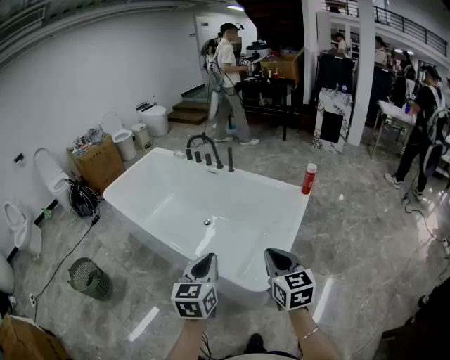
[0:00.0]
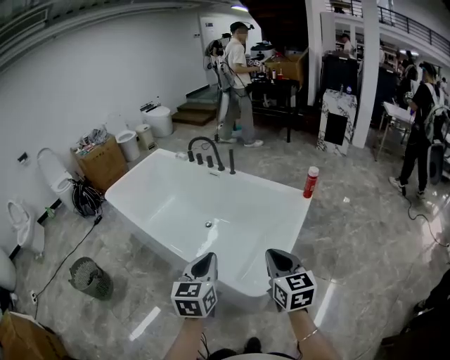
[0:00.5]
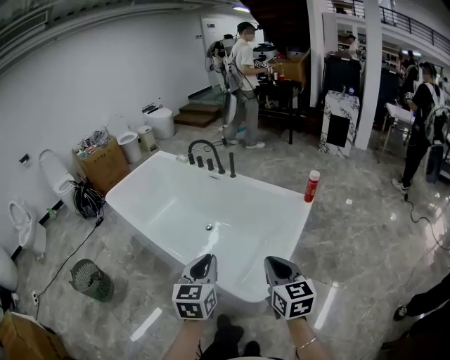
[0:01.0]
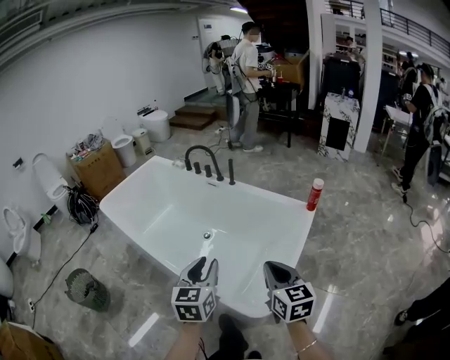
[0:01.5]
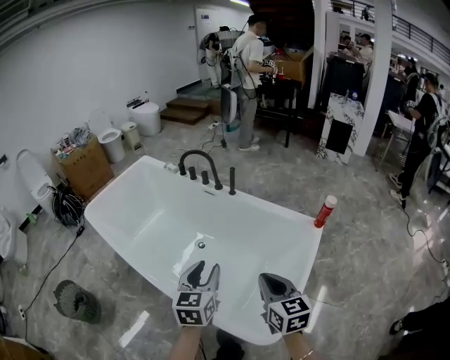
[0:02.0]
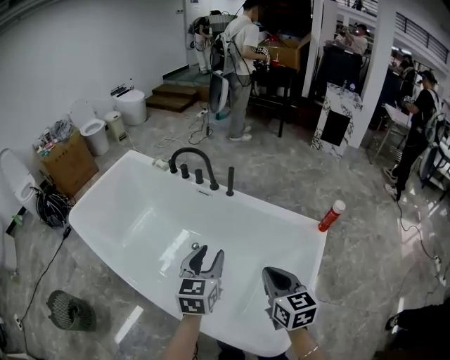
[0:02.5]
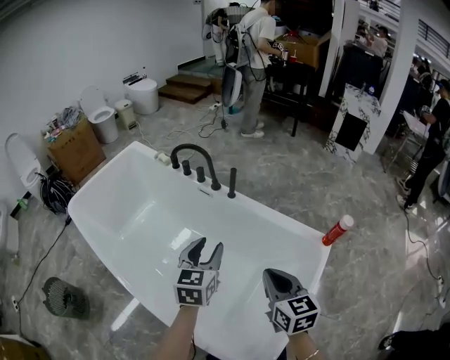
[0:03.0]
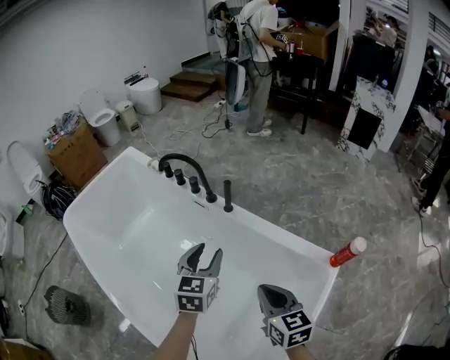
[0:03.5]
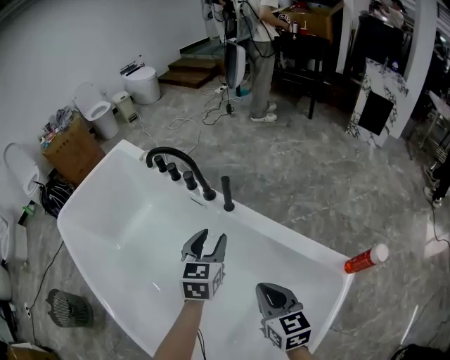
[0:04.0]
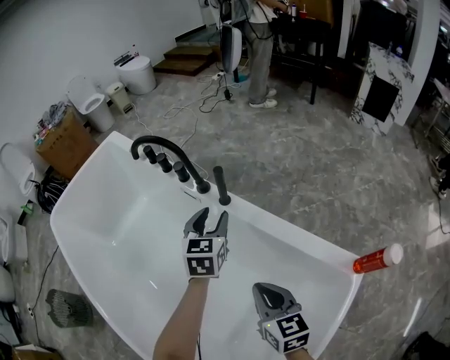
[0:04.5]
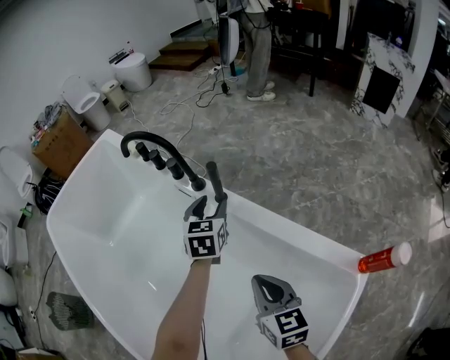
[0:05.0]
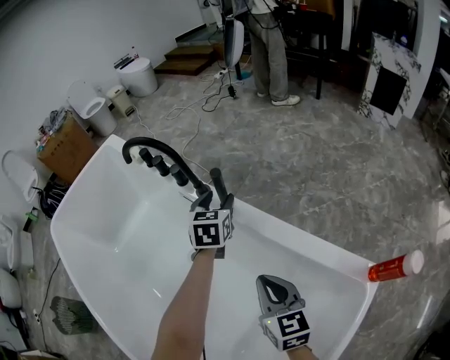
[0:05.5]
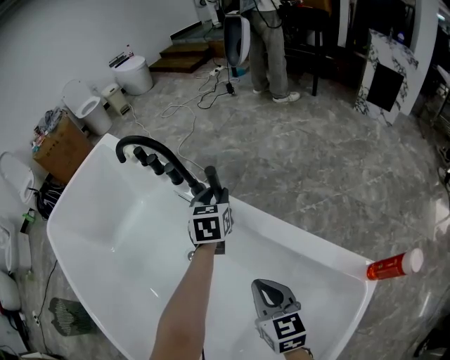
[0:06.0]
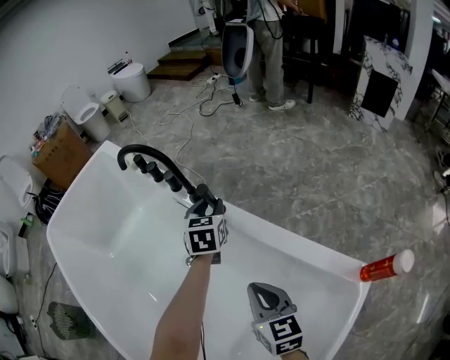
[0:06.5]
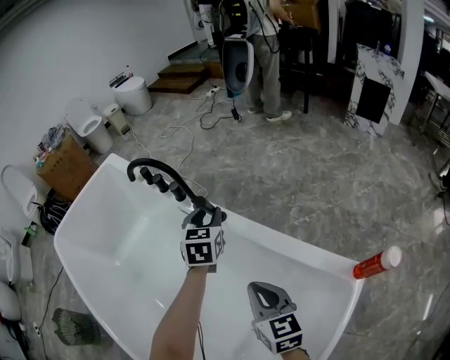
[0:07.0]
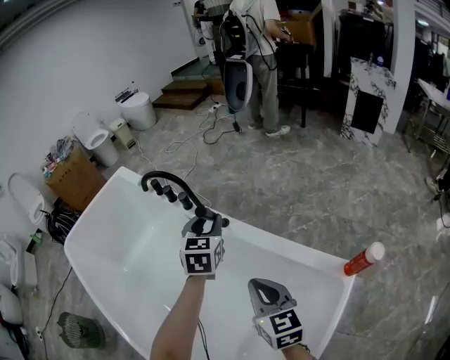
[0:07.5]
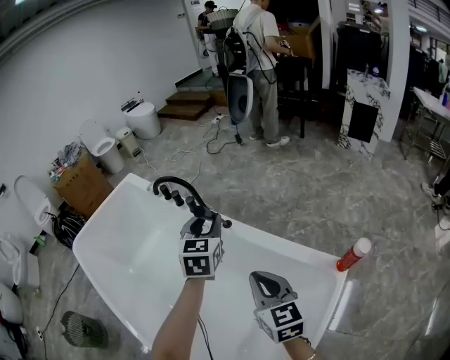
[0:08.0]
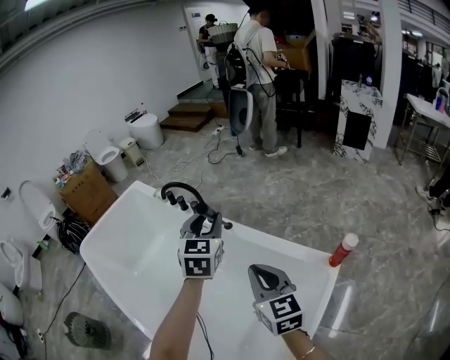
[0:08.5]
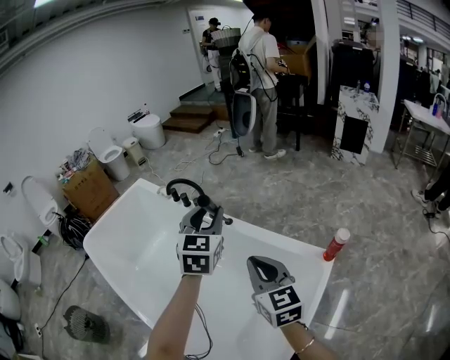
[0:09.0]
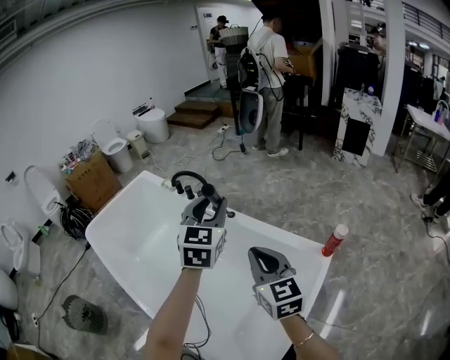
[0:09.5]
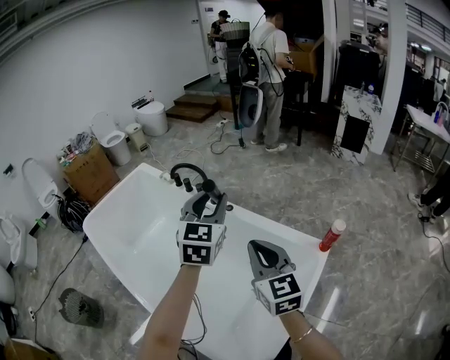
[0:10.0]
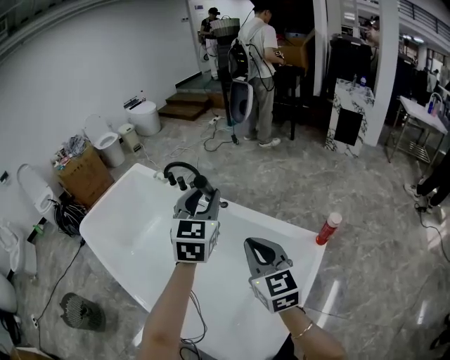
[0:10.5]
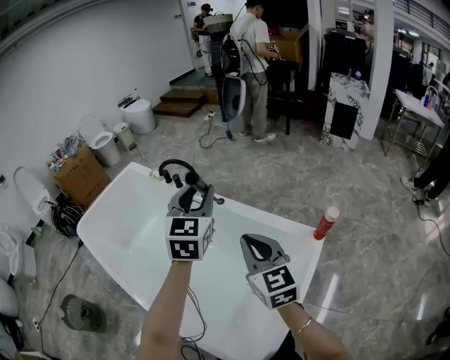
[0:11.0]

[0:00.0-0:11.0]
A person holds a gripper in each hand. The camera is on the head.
0:00.0 to 0:02.0: The two grippers go approximately 35 cm forward. The left gripper opens.
0:02.0 to 0:03.5: The two grippers travel together, forward, roughly 40 cm.
0:03.5 to 0:05.5: The left gripper travels forward and downward by some 40 cm. Meanwhile the right gripper shifts roughly 35 cm downward and forward.
0:05.5 to 0:07.5: The two grippers go roughly 25 cm upward and backward. The left gripper closes its fingers.
0:07.5 to 0:09.0: The left gripper heads backward and upward, covering approximately 40 cm; the right gripper travels upward and backward by about 30 cm.
0:09.0 to 0:11.0: The left gripper heads backward, covering approximately 5 cm.

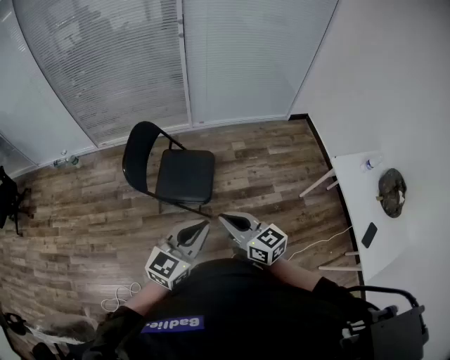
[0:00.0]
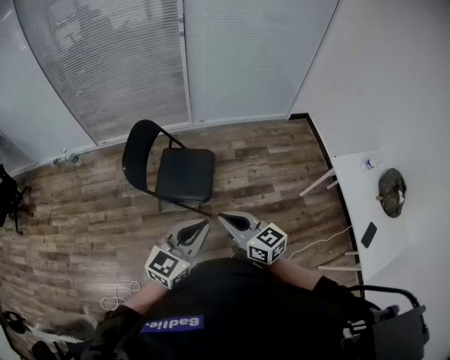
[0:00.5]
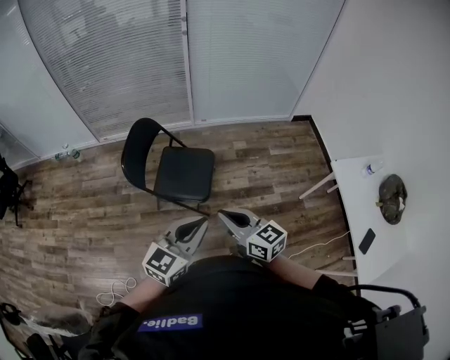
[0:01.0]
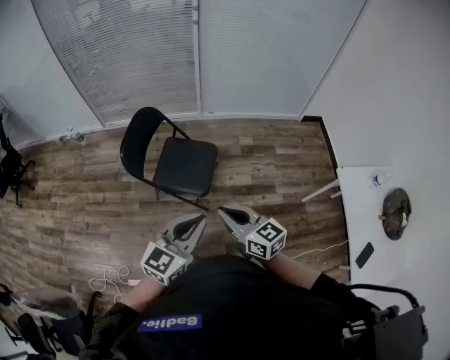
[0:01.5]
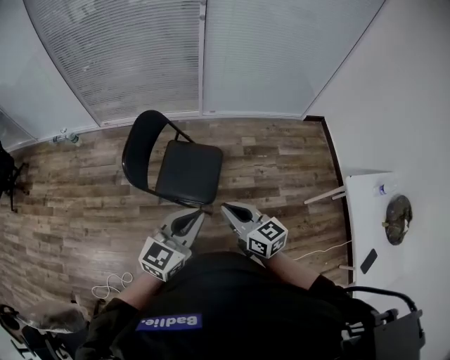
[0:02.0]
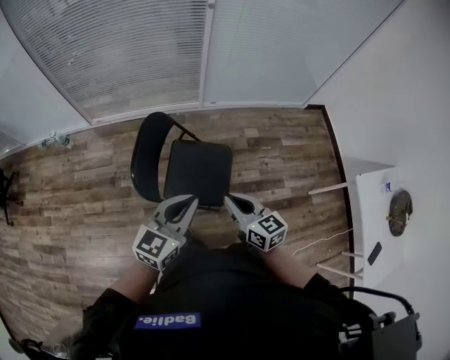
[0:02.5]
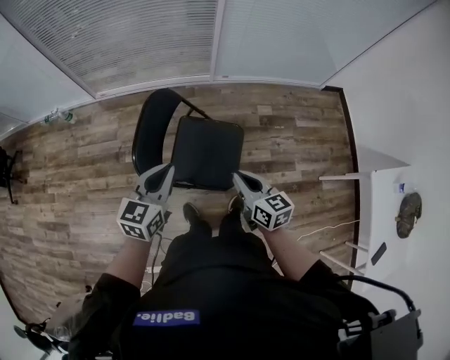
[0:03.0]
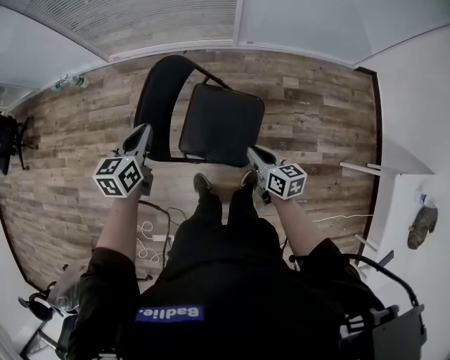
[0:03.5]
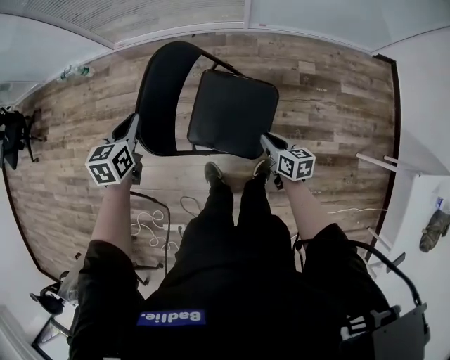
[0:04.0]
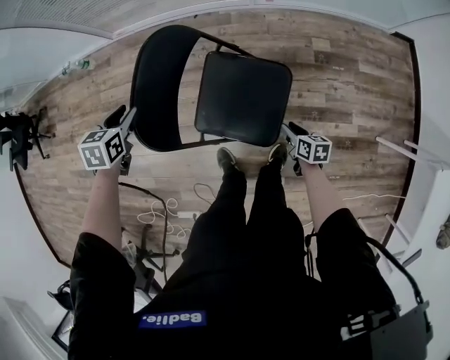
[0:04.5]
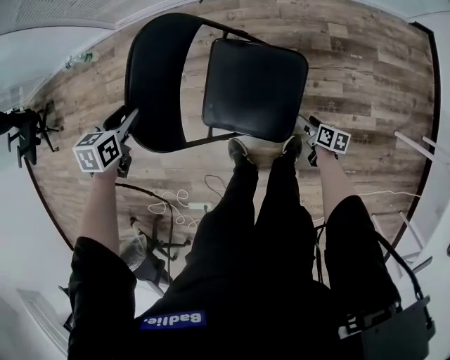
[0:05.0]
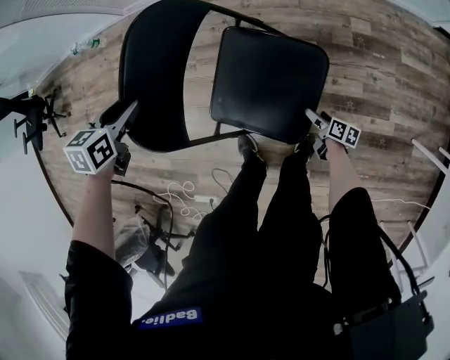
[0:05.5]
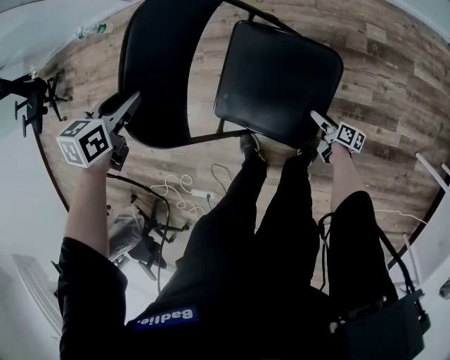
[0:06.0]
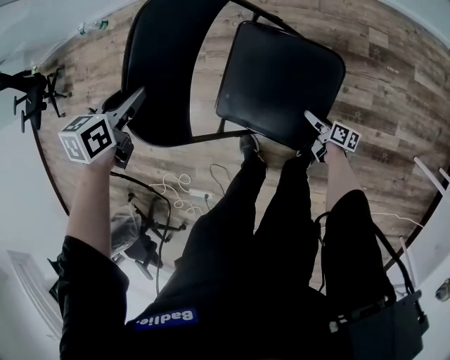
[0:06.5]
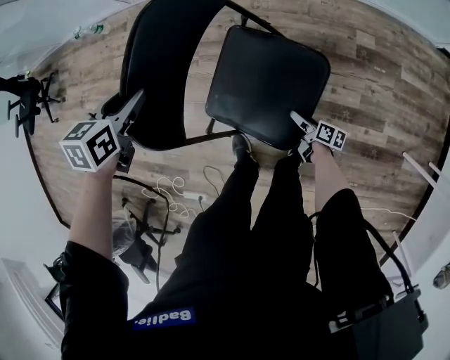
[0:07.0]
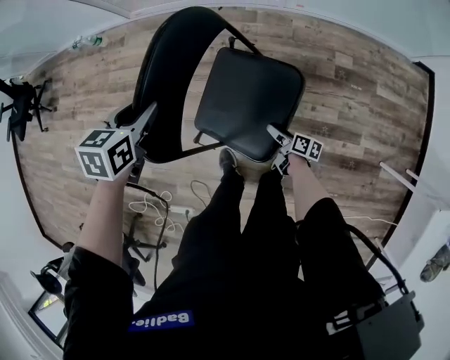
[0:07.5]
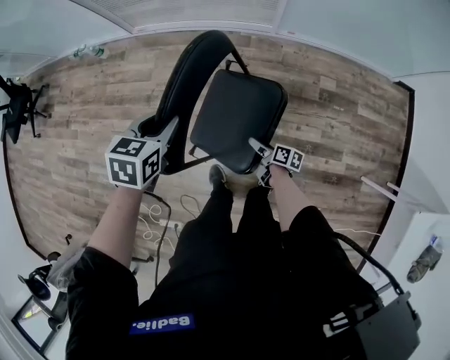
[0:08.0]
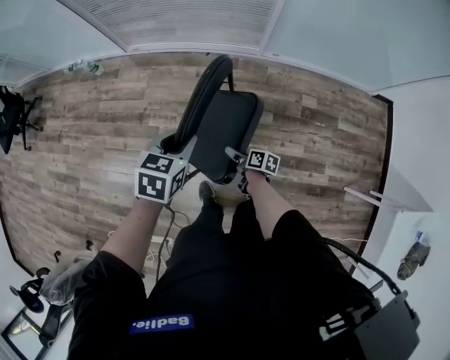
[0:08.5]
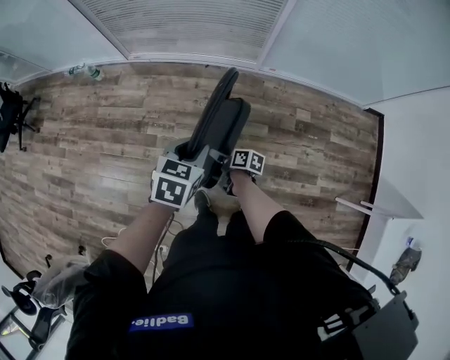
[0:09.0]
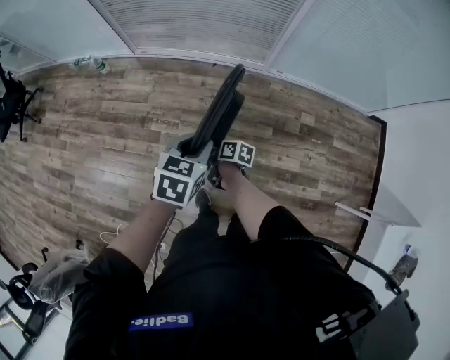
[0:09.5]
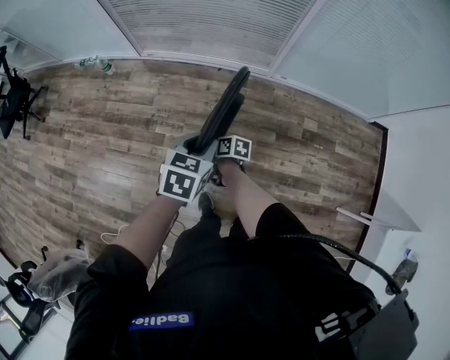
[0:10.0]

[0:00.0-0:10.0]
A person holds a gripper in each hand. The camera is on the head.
0:00.0 to 0:02.0: Both grippers move forward, approximately 15 cm.
0:02.0 to 0:04.0: The right gripper is displaced downward and forward by some 40 cm, and rotates approximately 30 degrees, while the left gripper moves forward, to the left and downward, some 50 cm, and points its fingers some 30 degrees further downward.
0:04.0 to 0:06.0: The right gripper heads downward, covering roughly 35 cm, turns by some 40 degrees, and opens. Meanwhile the left gripper travels downward by about 15 cm, and opens its fingers.
0:06.0 to 0:08.0: The right gripper heads upward and to the left, covering roughly 25 cm. Meanwhile the left gripper travels upward by about 15 cm.
0:08.0 to 0:10.0: The right gripper shifts about 30 cm to the left, upward and forward; the left gripper moves upward, about 5 cm.

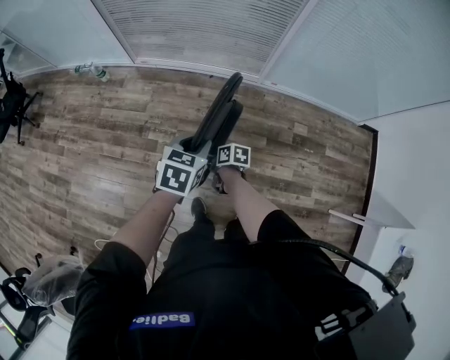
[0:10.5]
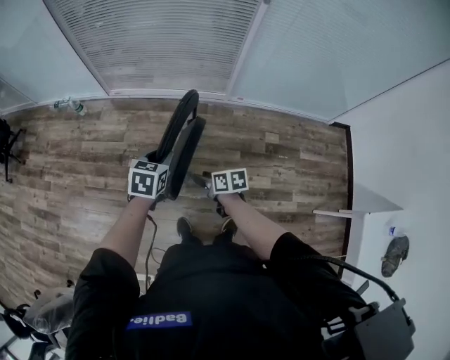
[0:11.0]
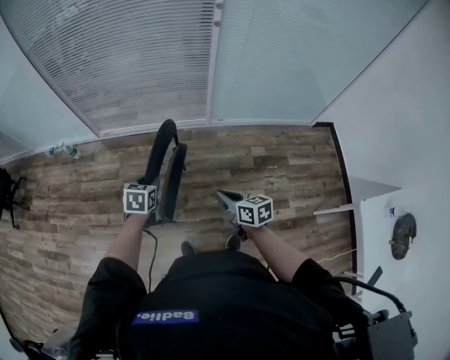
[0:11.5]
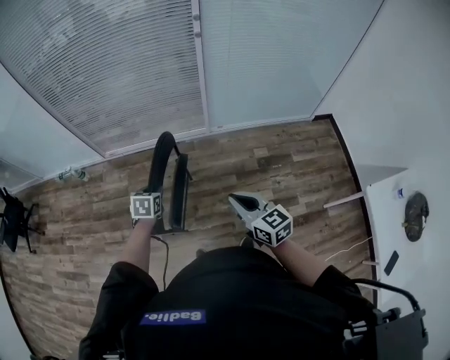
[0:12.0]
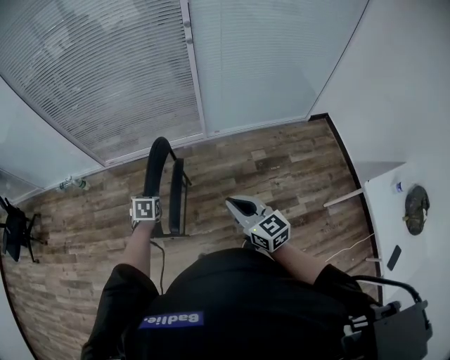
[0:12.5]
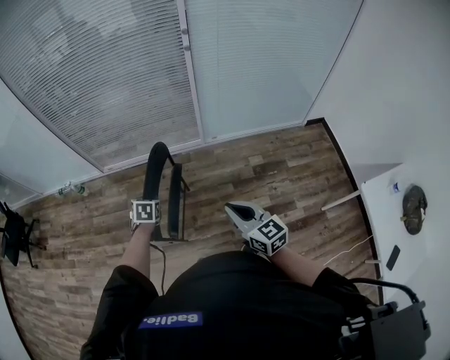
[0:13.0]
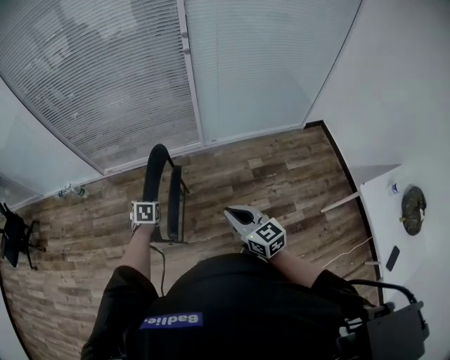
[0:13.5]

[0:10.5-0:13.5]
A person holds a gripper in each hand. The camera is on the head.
0:10.5 to 0:12.0: The right gripper is displaced upward, to the right and backward by some 40 cm, rotates about 60 degrees, and closes up.
0:12.0 to 0:13.5: The grippers move only a little.

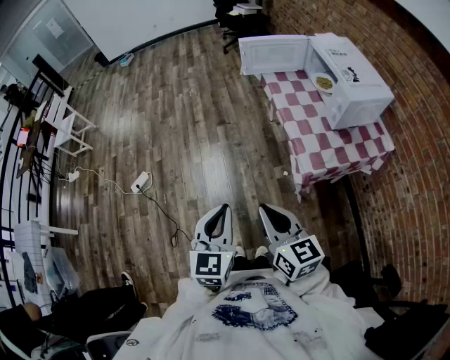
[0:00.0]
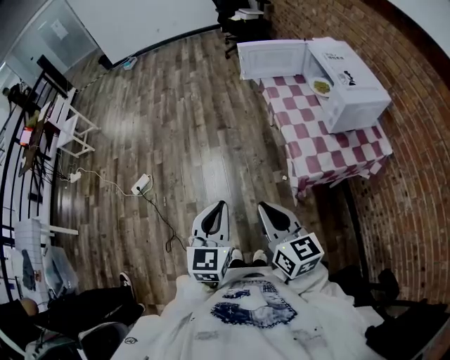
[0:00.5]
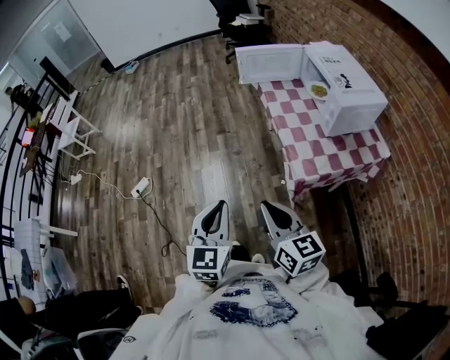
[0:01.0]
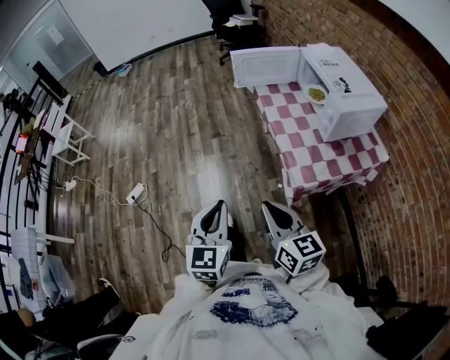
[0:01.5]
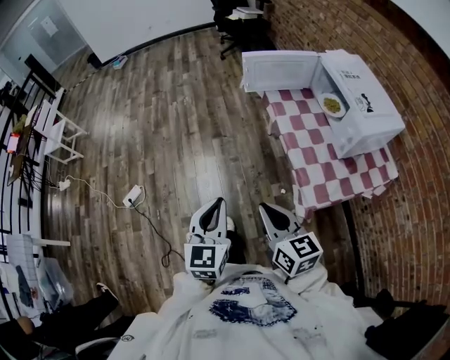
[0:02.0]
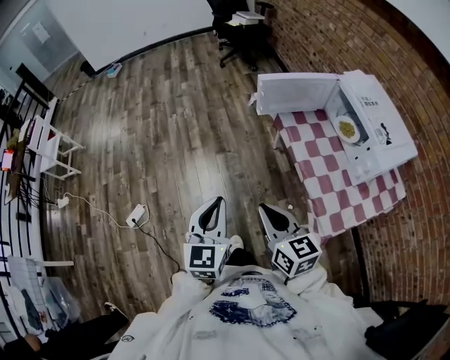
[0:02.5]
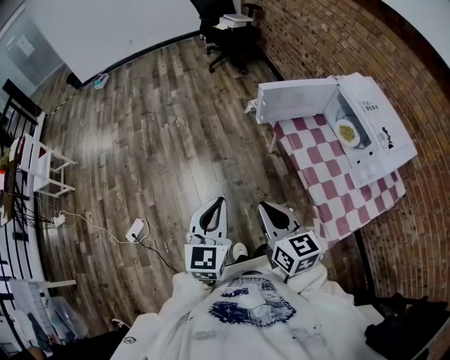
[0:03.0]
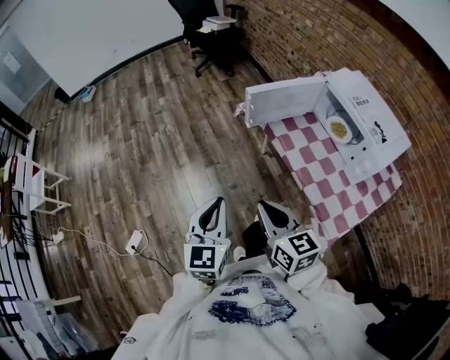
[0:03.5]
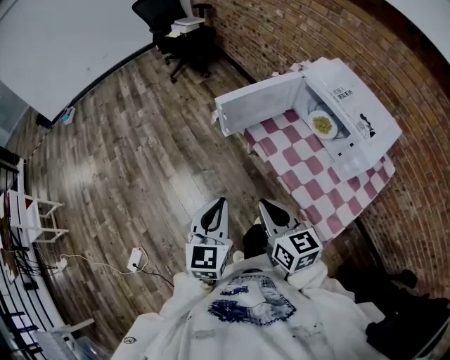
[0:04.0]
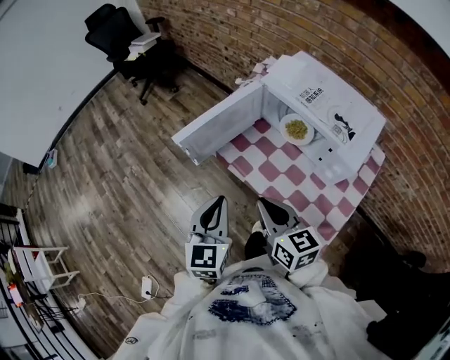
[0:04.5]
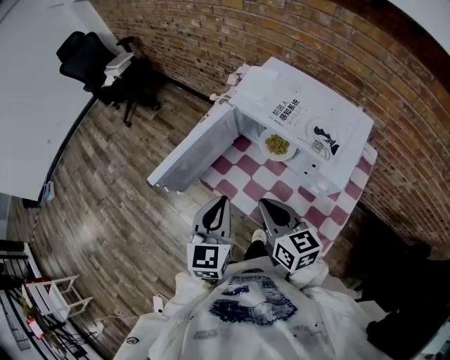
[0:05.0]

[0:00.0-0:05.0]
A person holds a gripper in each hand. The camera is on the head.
0:00.0 to 0:02.5: Both grippers move forward, roughly 30 cm.
0:02.5 to 0:05.0: The left gripper changes place by approximately 40 cm, and rotates about 40 degrees. Meanwhile the right gripper moves roughly 35 cm, and changes its angle by about 40 degrees.
